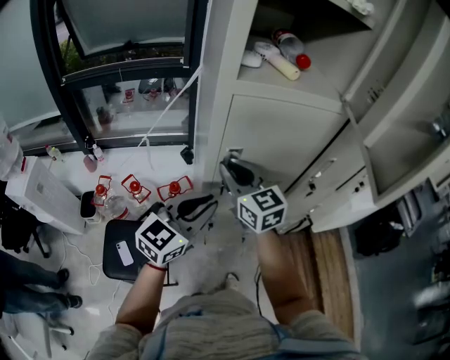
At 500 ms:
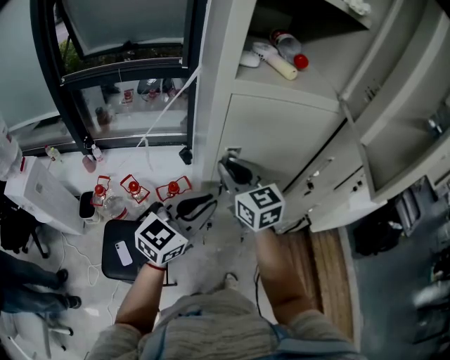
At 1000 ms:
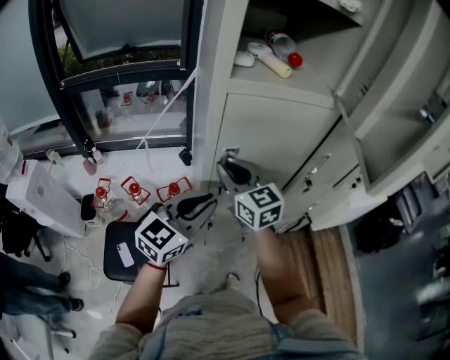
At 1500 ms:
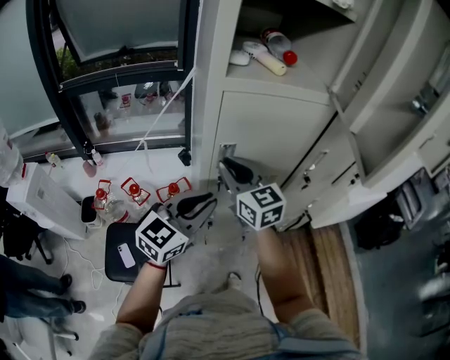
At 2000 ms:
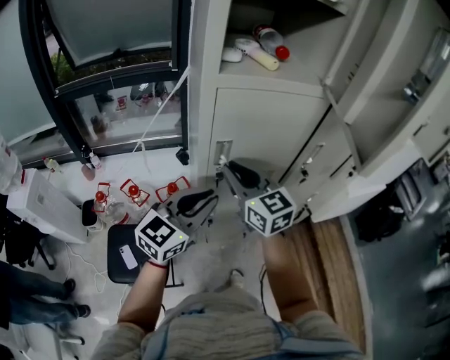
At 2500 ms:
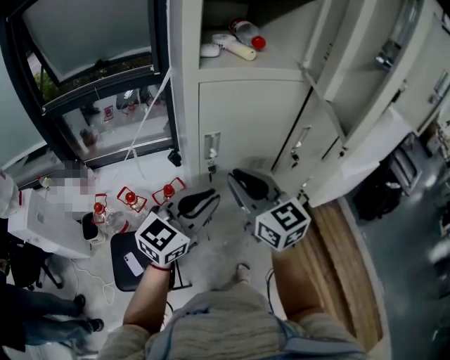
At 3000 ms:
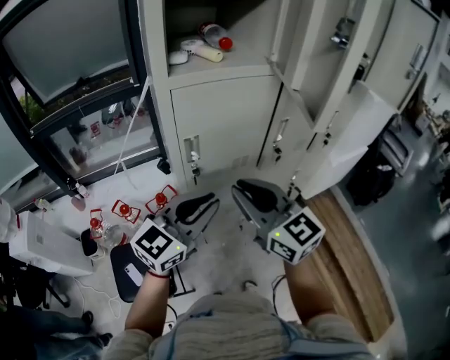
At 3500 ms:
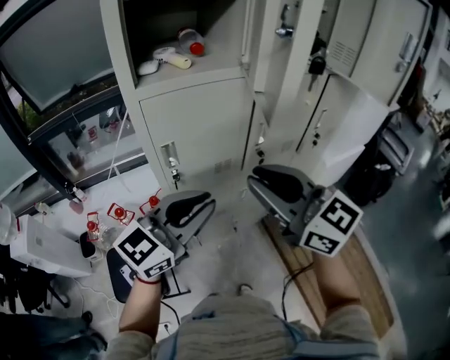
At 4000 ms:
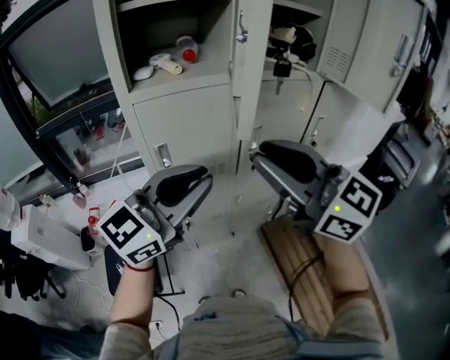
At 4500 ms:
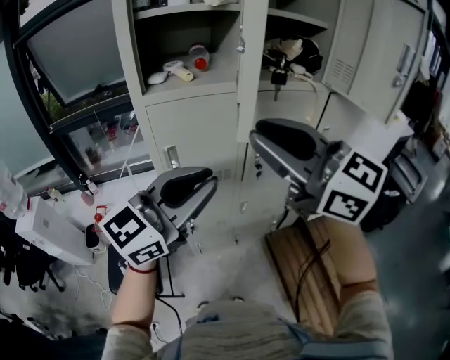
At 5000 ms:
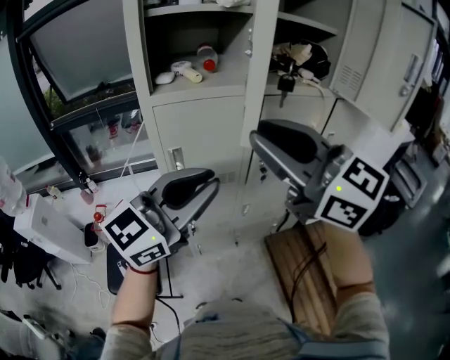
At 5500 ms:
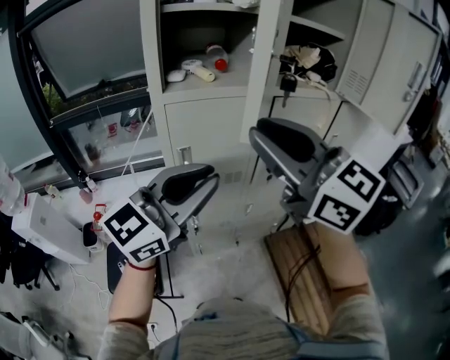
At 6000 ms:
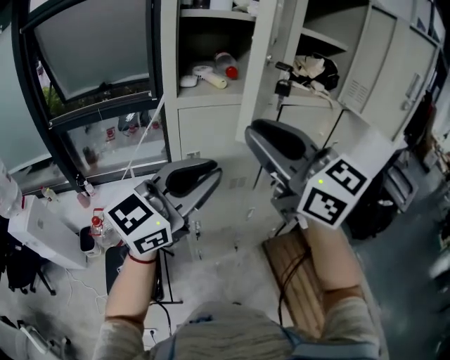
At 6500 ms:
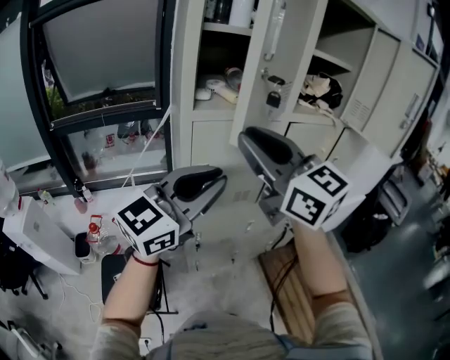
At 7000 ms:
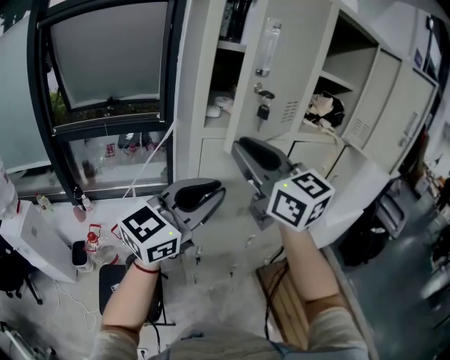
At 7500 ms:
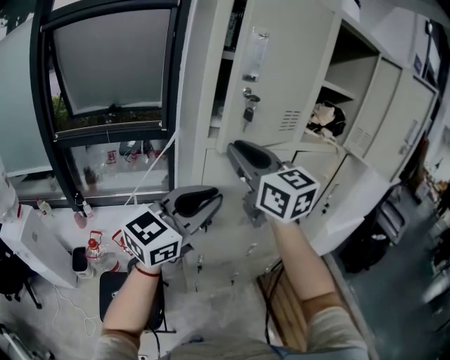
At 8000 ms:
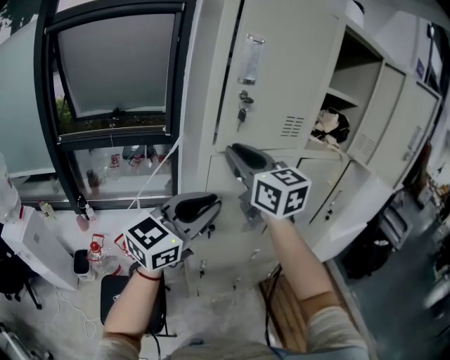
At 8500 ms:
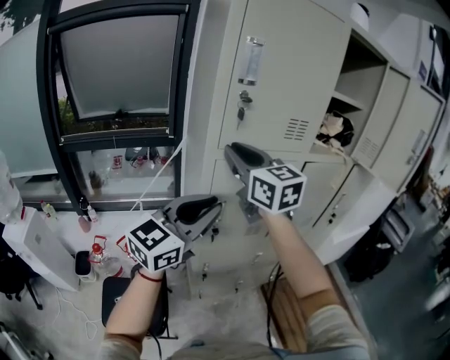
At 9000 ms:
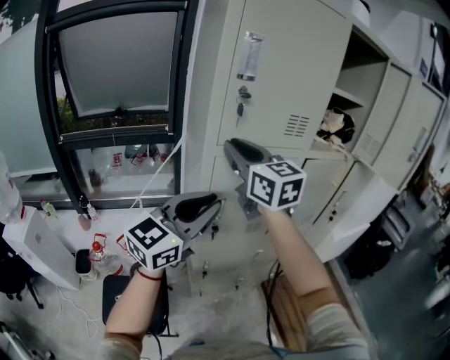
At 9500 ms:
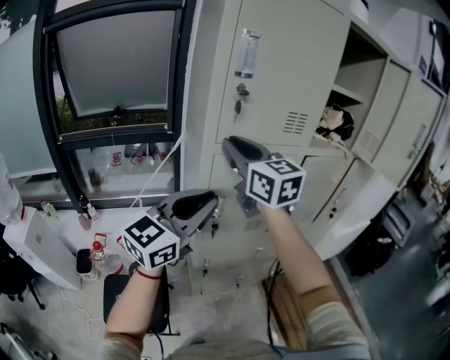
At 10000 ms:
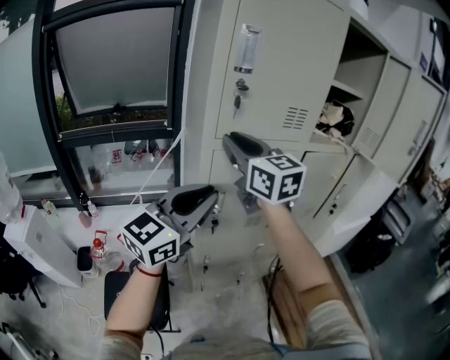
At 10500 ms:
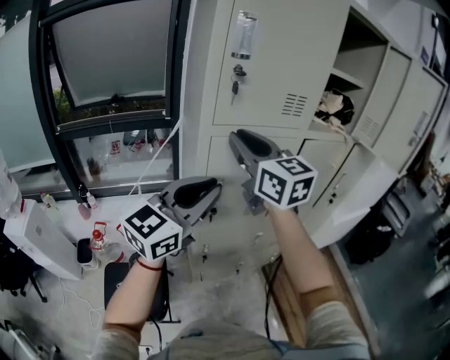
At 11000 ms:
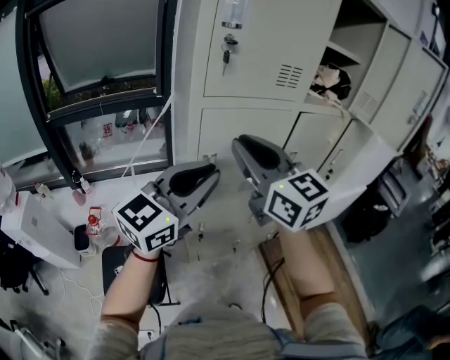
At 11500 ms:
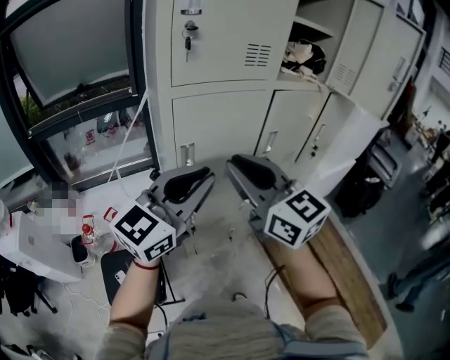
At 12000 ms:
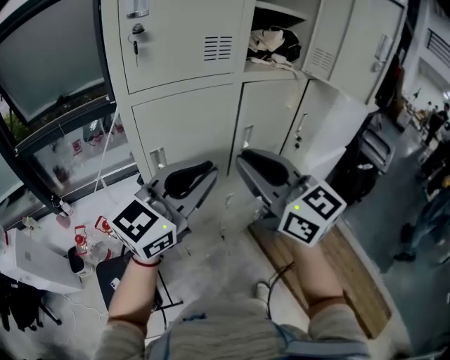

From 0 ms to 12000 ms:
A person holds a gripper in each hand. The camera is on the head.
From 0 ms to 2000 ms: The right gripper changes place by roughly 5 cm.
From 2000 ms to 4000 ms: The left gripper heads upward and to the right, covering about 25 cm. Meanwhile the right gripper is displaced to the right, upward and backward by approximately 35 cm.
From 4000 ms to 6000 ms: The right gripper heads to the left and upward, covering about 10 cm, while the left gripper moves to the left, roughly 5 cm.
From 6000 ms to 8000 ms: The right gripper shifts about 15 cm forward and to the left, while the left gripper travels to the left by about 10 cm.
From 8000 ms to 10000 ms: The grippers stay close to where they were, moving slightly.
From 10000 ms to 12000 ms: The right gripper goes some 25 cm to the right and backward. Meanwhile the left gripper heads to the right, covering some 15 cm.

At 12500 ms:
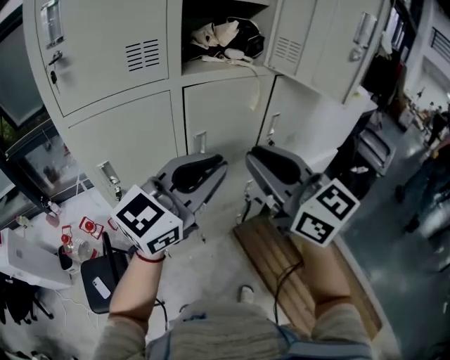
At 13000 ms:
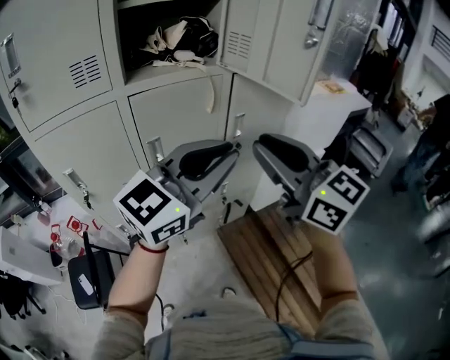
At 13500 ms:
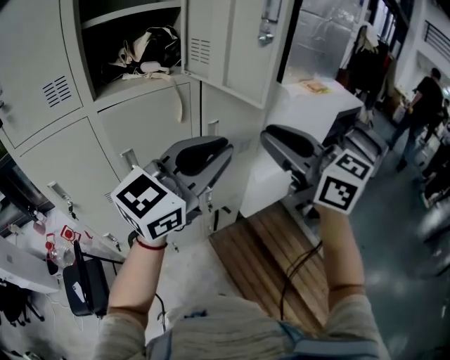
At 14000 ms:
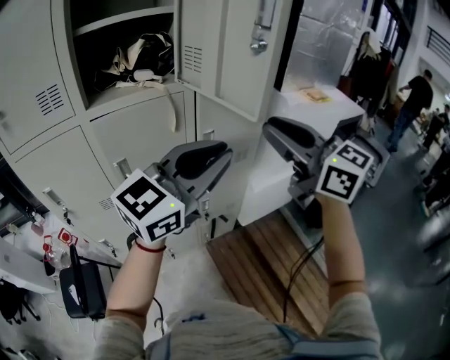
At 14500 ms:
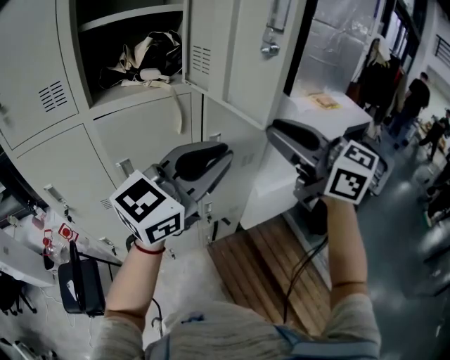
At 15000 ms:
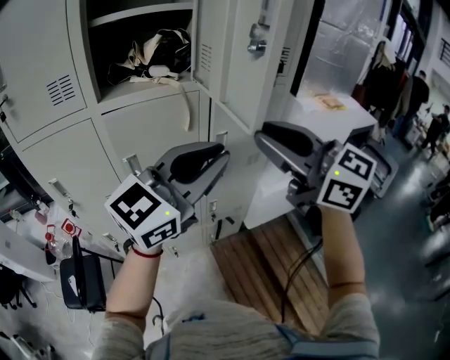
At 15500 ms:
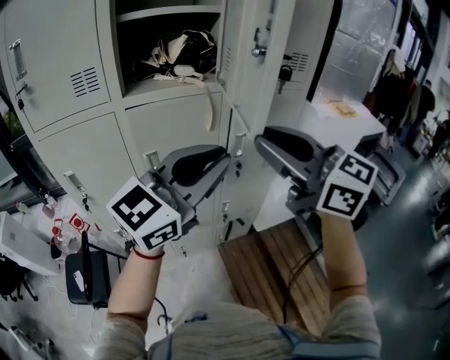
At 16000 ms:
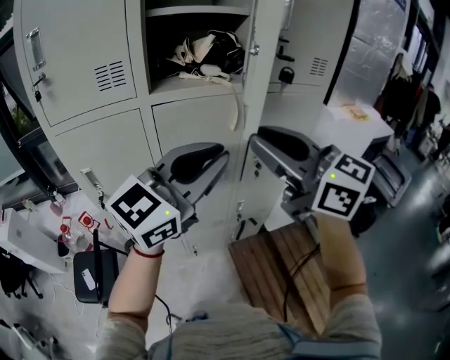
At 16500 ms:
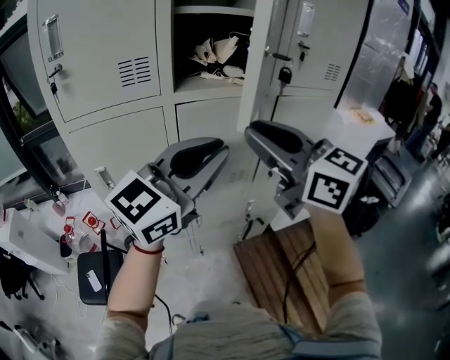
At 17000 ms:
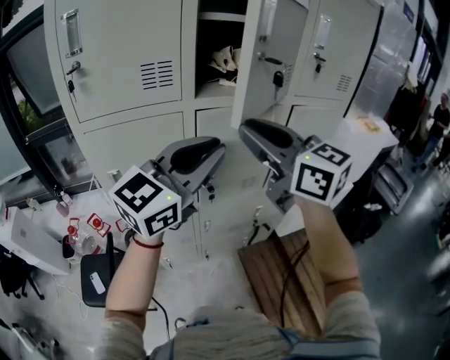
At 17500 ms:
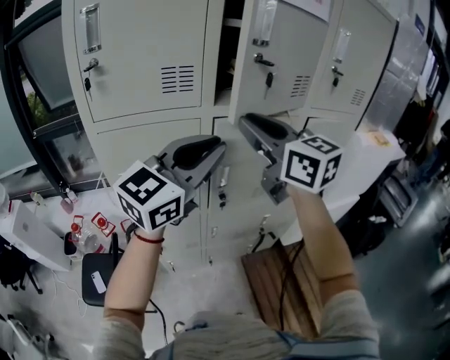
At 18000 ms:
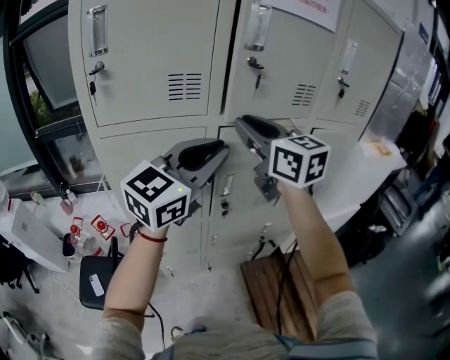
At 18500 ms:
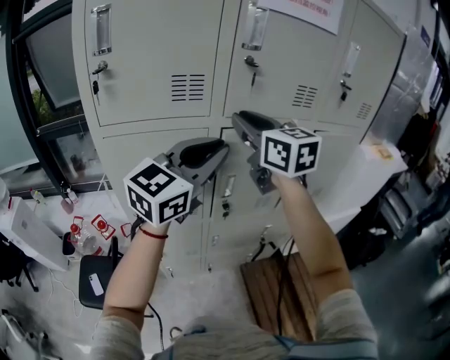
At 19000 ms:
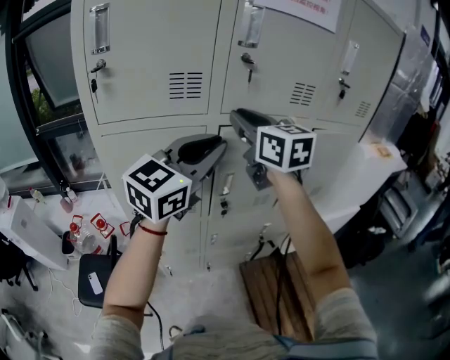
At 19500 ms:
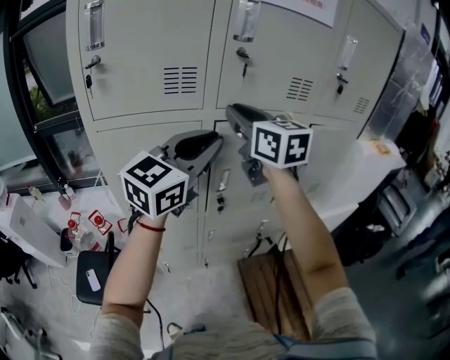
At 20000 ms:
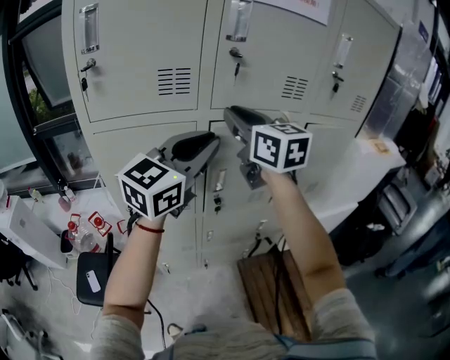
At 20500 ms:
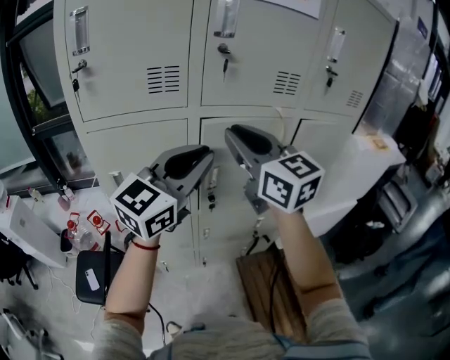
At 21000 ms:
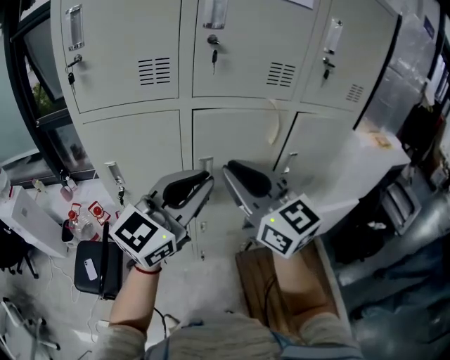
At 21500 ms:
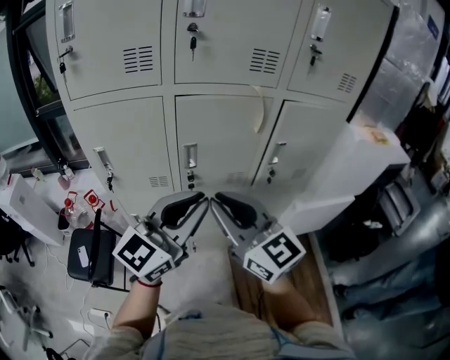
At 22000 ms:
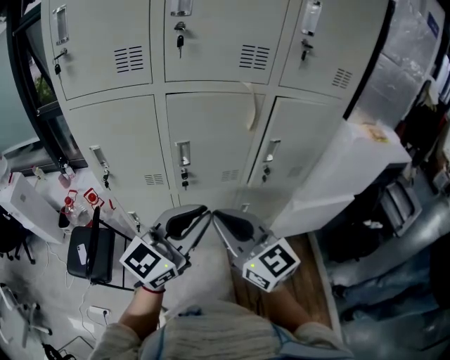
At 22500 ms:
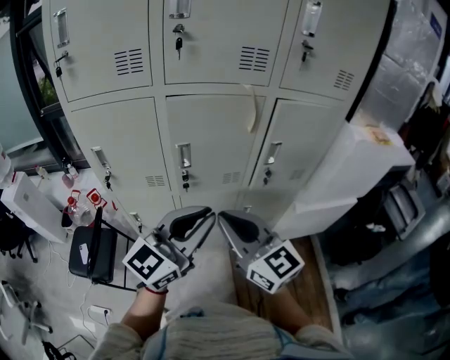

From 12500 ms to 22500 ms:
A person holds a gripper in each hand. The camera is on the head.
From 12500 ms to 14500 ms: Both grippers move to the right and forward, roughly 25 cm.
From 14500 ms to 16500 ms: Both grippers move to the left, roughly 20 cm.
From 16500 ms to 18500 ms: The right gripper shifts about 20 cm forward and to the left; the left gripper goes some 15 cm to the left and forward.
From 18500 ms to 20500 ms: The right gripper heads backward, covering about 5 cm.
From 20500 ms to 22500 ms: The left gripper heads backward, downward and to the right, covering some 20 cm, while the right gripper shifts about 25 cm downward, backward and to the right.

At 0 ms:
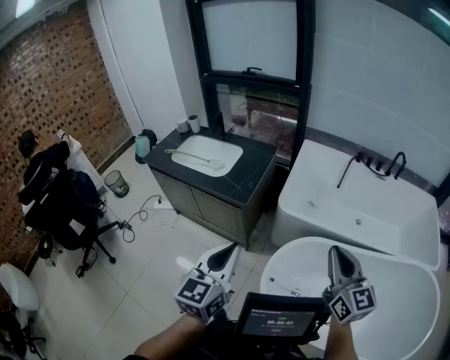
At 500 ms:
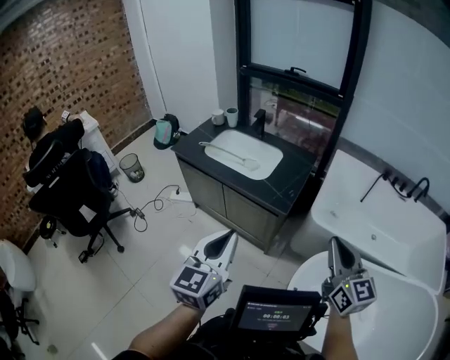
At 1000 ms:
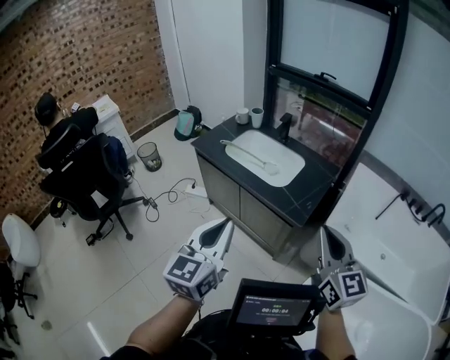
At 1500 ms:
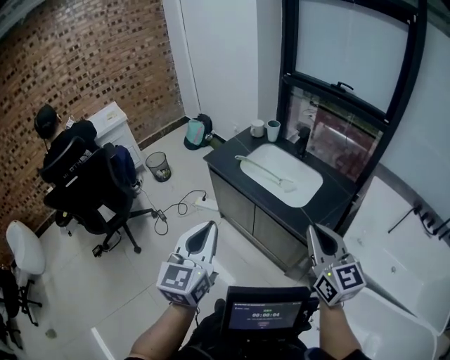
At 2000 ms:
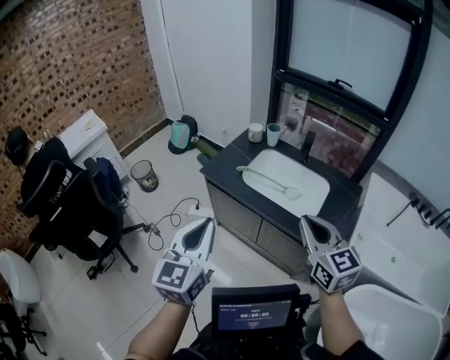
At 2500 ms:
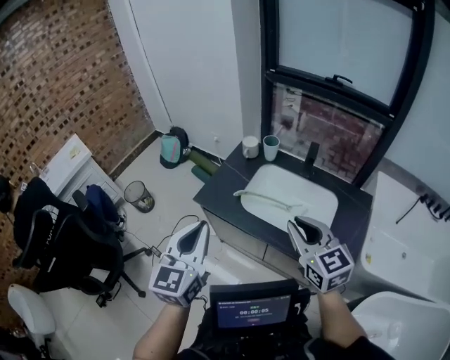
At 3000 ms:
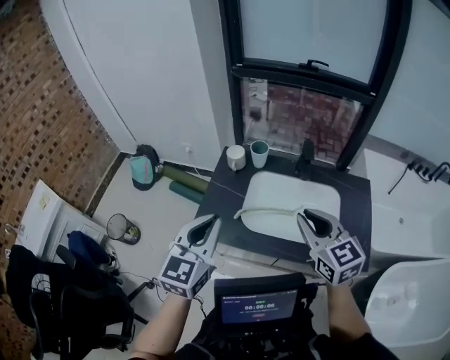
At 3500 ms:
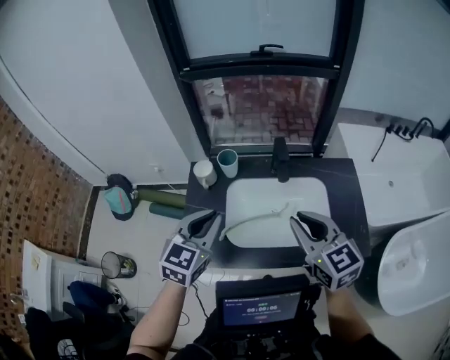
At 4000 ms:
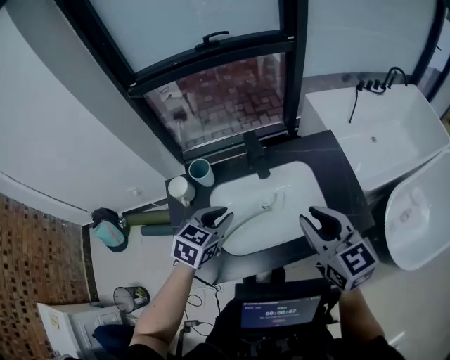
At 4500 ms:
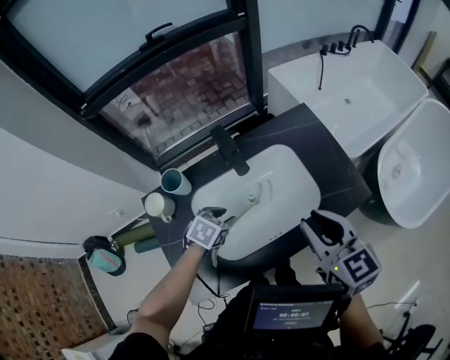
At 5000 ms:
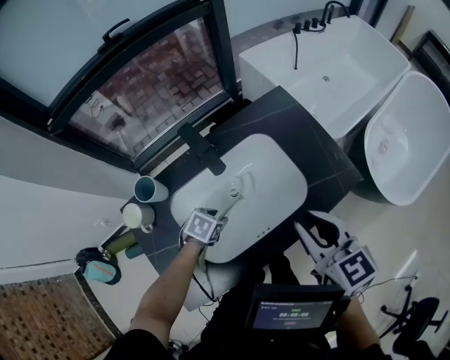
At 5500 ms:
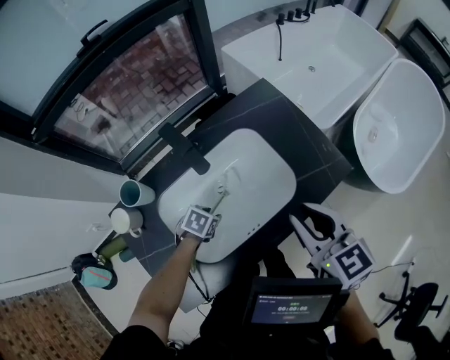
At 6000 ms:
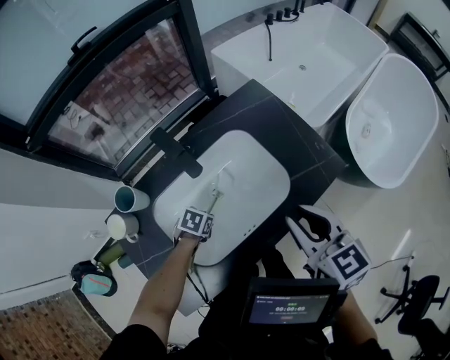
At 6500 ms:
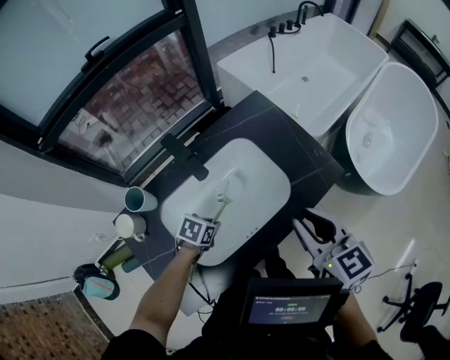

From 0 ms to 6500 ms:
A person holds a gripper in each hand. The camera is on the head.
From 0 ms to 2000 ms: Both grippers are carried to the left and forward, some 90 cm. The right gripper swivels about 20 degrees.
From 2000 ms to 4500 ms: The pair of grippers is taken about 60 cm. The left gripper tips its fingers downward by some 60 degrees, and opens its fingers, while the right gripper swivels some 60 degrees.
From 4500 ms to 6500 ms: The right gripper shifts approximately 5 cm to the right, while the left gripper travels downward and to the right by some 10 cm, and closes its fingers.
